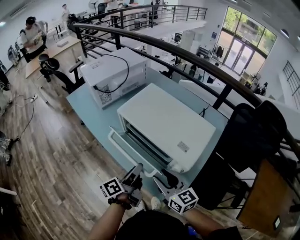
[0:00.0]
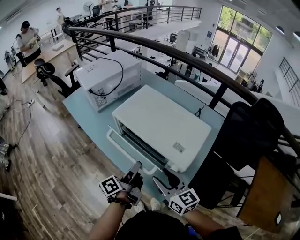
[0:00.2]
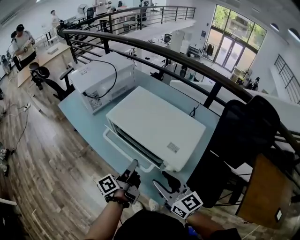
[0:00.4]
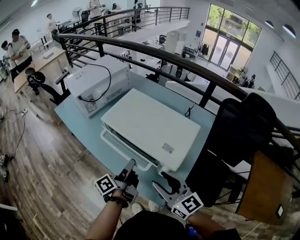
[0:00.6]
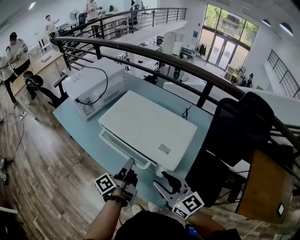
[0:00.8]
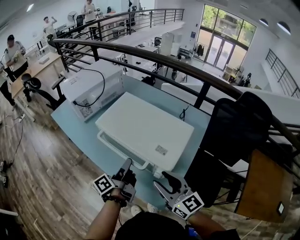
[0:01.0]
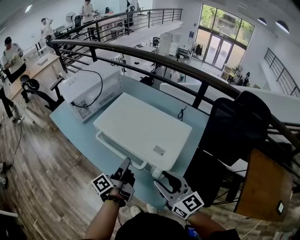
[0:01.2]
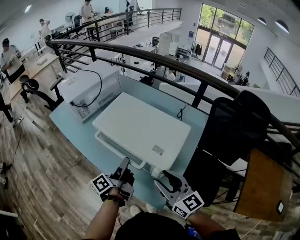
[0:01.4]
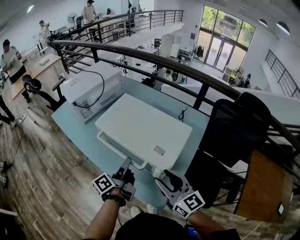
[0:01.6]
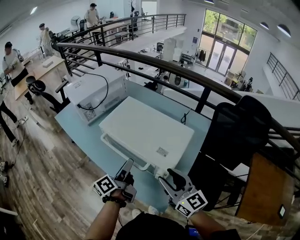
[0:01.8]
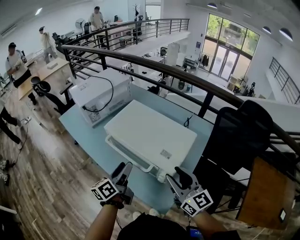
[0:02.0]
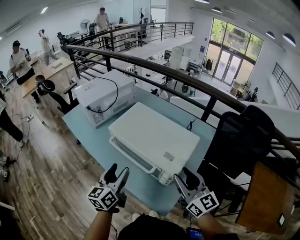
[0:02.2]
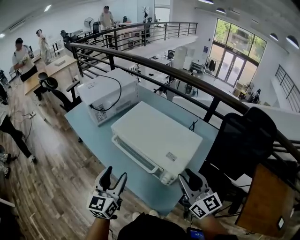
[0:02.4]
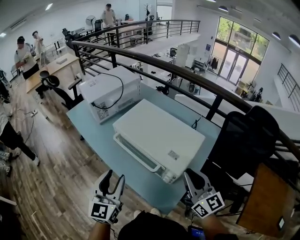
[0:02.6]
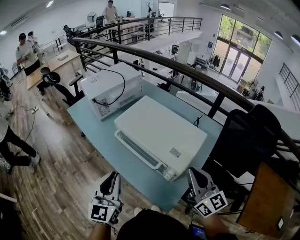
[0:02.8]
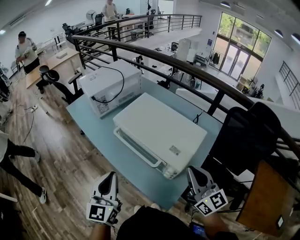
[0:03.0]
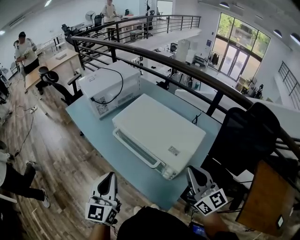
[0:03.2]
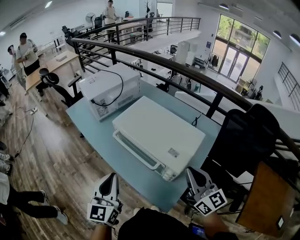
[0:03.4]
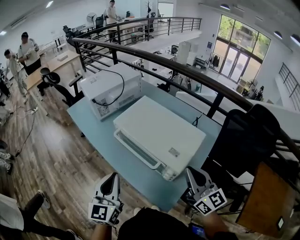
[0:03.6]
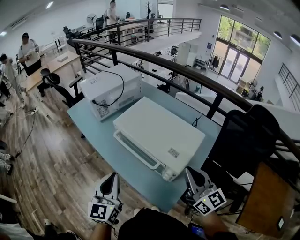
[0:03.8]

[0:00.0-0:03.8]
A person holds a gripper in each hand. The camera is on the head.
0:00.0 to 0:01.2: The left gripper shifts by about 5 cm; the right gripper travels to the right and upward by roughly 10 cm.
0:01.2 to 0:02.6: The left gripper shifts approximately 15 cm to the left, upward and backward, and rotates around the line of its fingers by about 80 degrees, clockwise from behind. Meanwhile the right gripper moves upward and to the right, about 10 cm, and closes its fingers.
0:02.6 to 0:03.8: The left gripper closes.

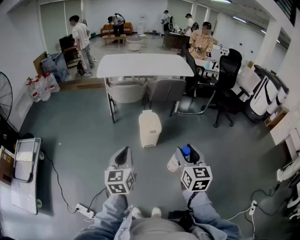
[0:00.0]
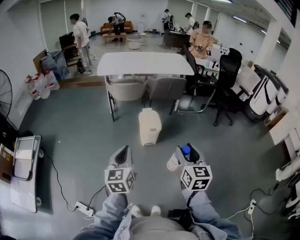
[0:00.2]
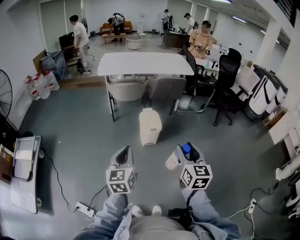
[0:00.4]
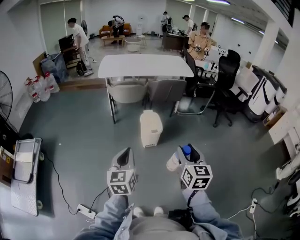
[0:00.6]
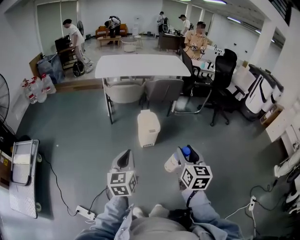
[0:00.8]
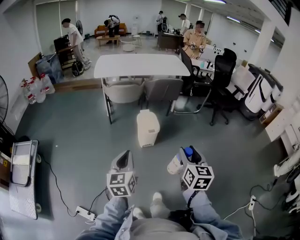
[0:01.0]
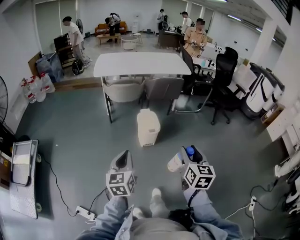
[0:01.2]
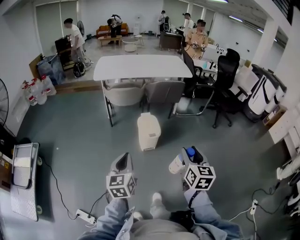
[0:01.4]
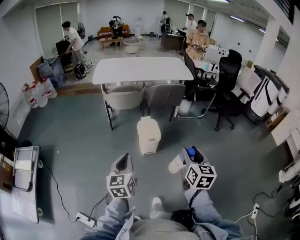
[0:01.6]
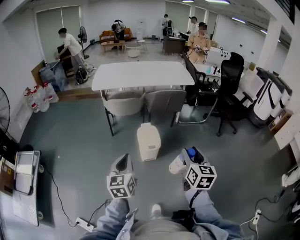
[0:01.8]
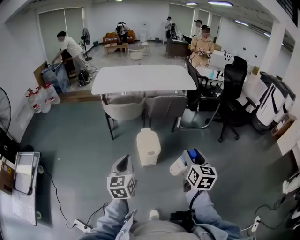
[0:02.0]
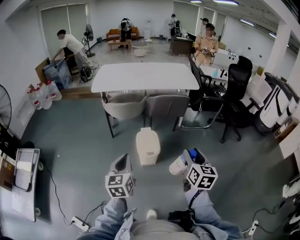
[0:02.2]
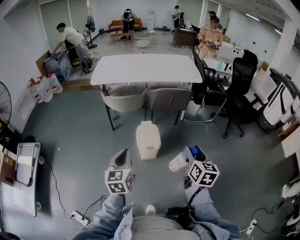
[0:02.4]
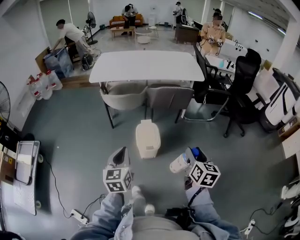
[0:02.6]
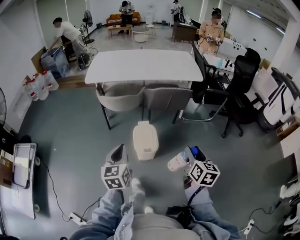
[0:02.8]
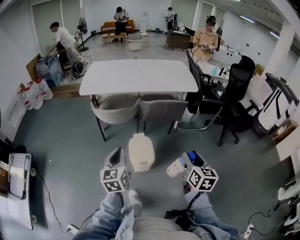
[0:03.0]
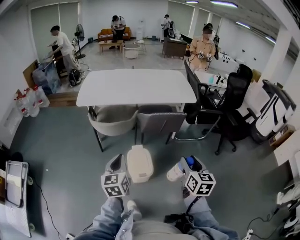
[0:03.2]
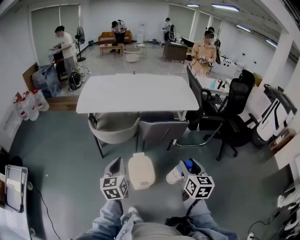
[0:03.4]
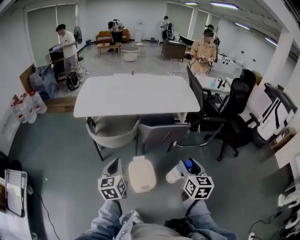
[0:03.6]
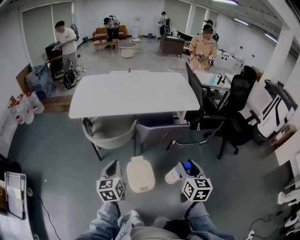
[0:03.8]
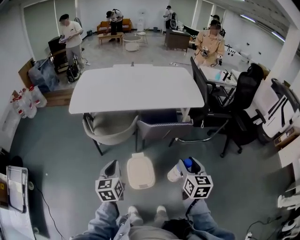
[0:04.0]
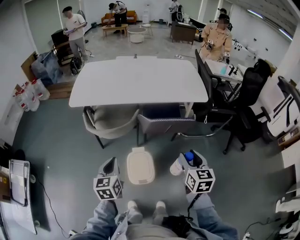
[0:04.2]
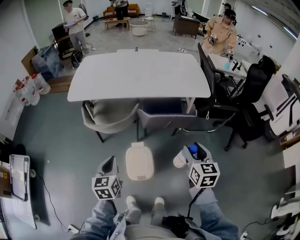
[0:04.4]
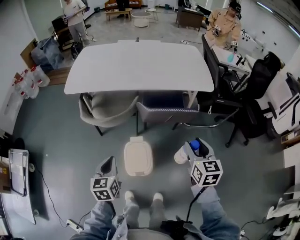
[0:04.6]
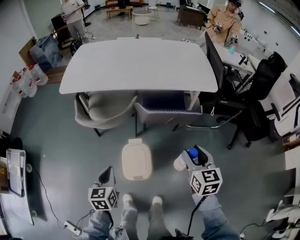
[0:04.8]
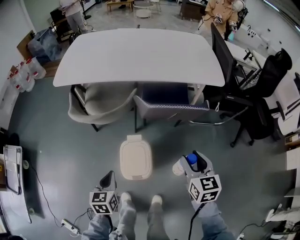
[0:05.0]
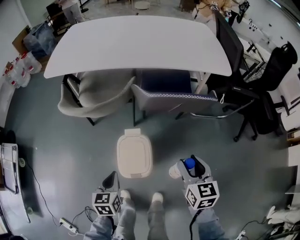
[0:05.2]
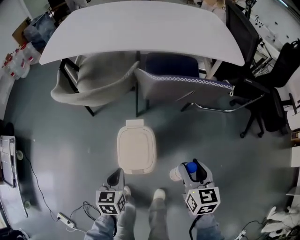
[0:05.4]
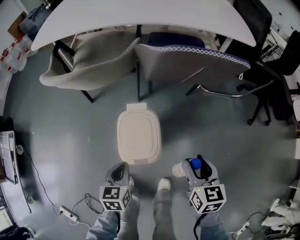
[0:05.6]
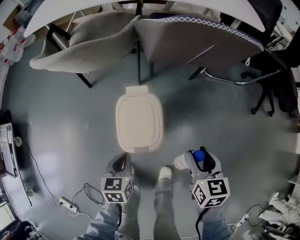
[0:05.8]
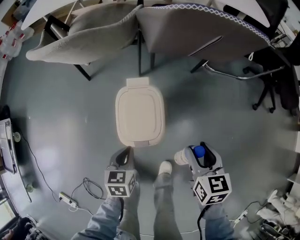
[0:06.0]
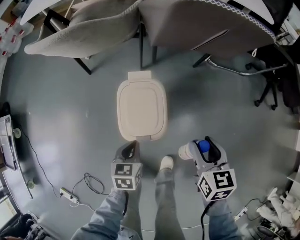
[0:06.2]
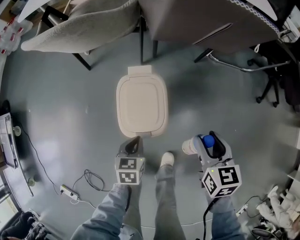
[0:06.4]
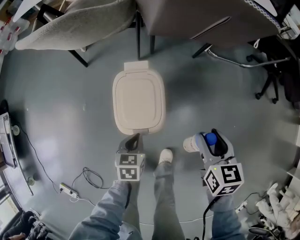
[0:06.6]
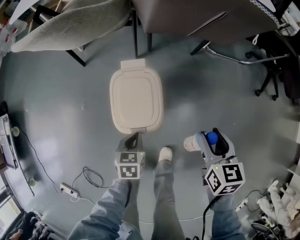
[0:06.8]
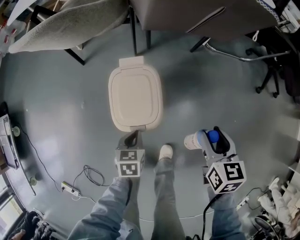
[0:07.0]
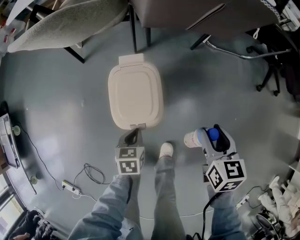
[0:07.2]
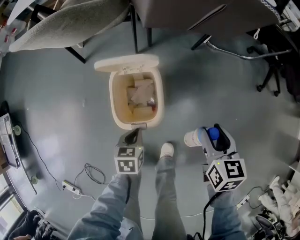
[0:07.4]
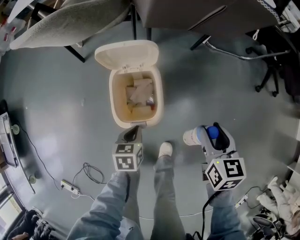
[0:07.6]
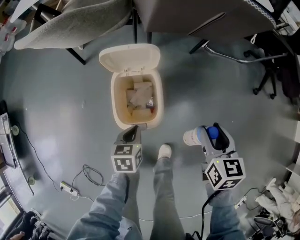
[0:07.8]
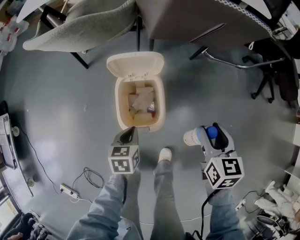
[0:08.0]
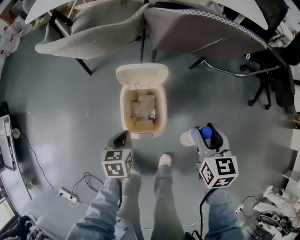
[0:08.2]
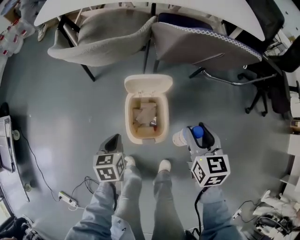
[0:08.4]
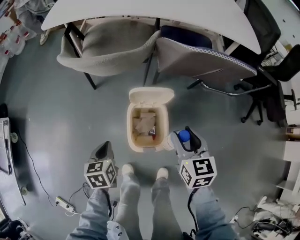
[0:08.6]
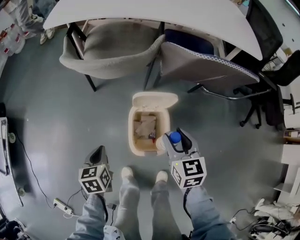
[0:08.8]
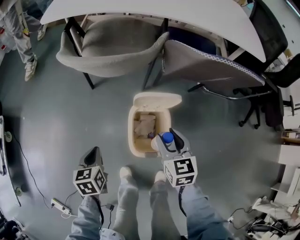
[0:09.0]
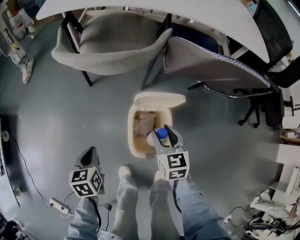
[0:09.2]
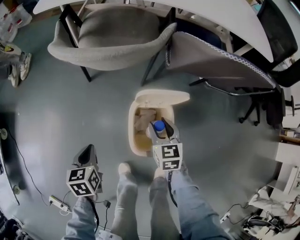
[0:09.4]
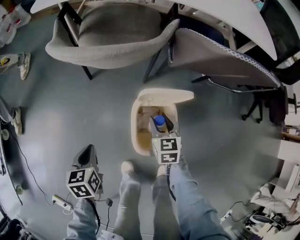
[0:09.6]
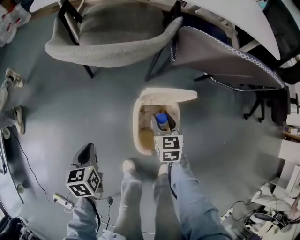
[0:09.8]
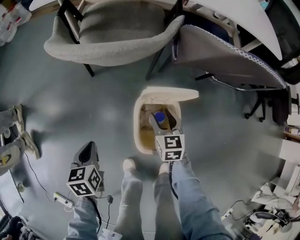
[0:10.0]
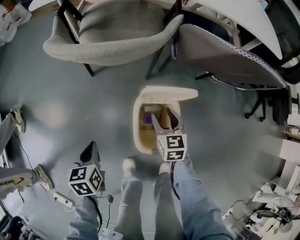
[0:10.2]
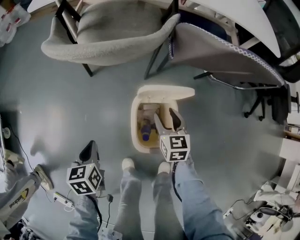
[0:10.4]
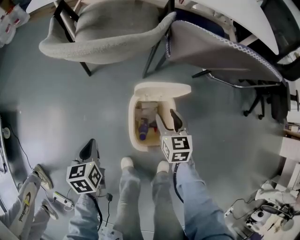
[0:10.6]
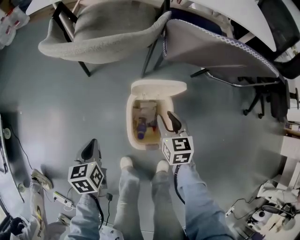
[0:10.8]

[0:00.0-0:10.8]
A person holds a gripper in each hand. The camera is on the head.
0:00.0 to 0:01.6: Both grippers move forward, some 10 cm.
0:01.6 to 0:03.0: Both grippers move forward, approximately 30 cm.
0:03.0 to 0:04.6: The right gripper is displaced forward by some 30 cm. The left gripper shifts approximately 25 cm forward and downward.
0:04.6 to 0:06.2: Both grippers move downward, roughly 40 cm. The left gripper changes its angle by about 20 degrees.
0:06.2 to 0:07.8: There are only small adjustments of the grippers.
0:07.8 to 0:09.2: The right gripper moves to the left and forward, about 25 cm; the left gripper shifts roughly 25 cm to the left.

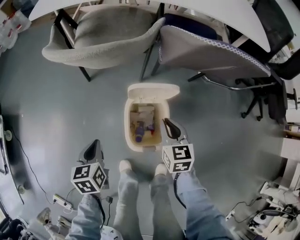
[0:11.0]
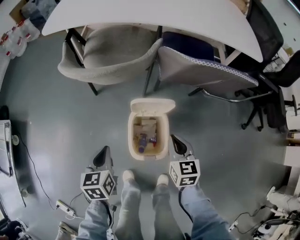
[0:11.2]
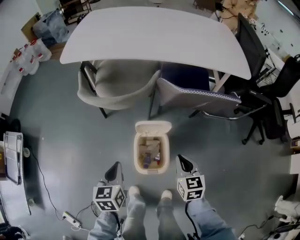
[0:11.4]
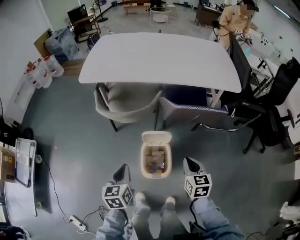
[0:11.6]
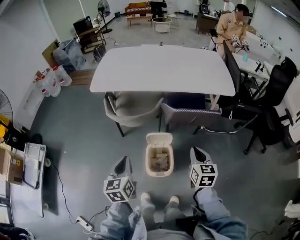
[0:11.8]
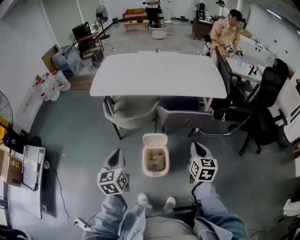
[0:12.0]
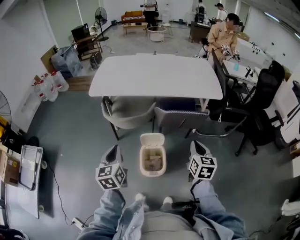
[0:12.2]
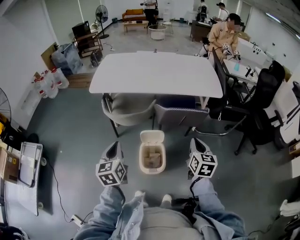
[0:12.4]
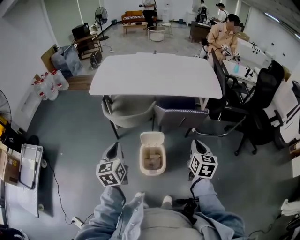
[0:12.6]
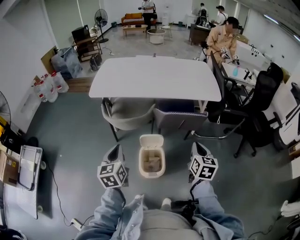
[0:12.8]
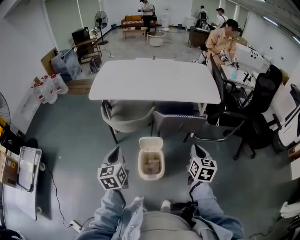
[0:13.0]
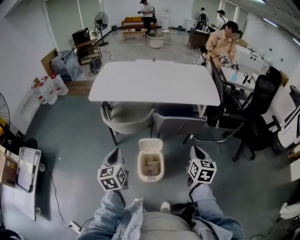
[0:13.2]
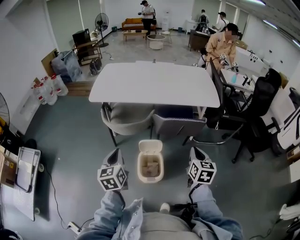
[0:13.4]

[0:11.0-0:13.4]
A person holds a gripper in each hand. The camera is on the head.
0:11.0 to 0:12.2: Both grippers travel together upward, roughly 40 cm. The left gripper turns by some 30 degrees. Meanwhile the right gripper swivels about 20 degrees.
0:12.2 to 0:13.4: The grippers move only a little.

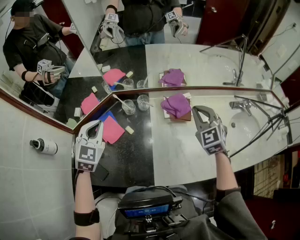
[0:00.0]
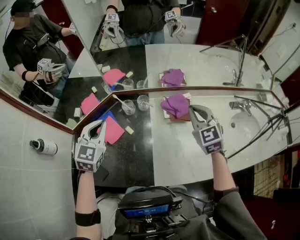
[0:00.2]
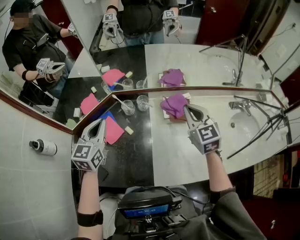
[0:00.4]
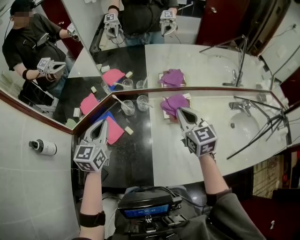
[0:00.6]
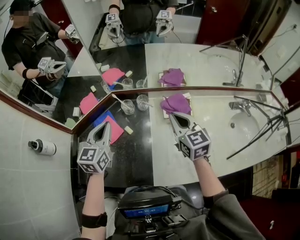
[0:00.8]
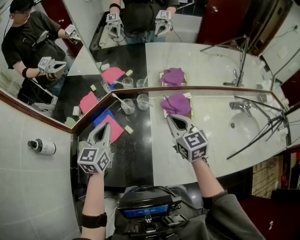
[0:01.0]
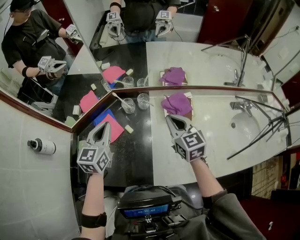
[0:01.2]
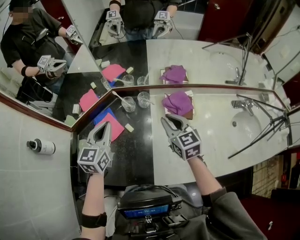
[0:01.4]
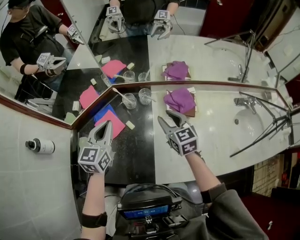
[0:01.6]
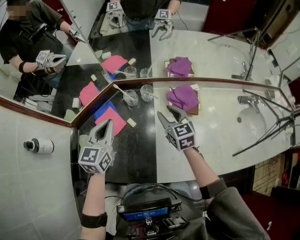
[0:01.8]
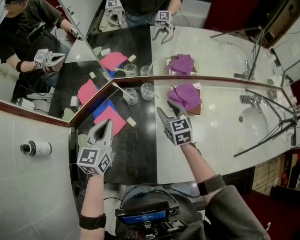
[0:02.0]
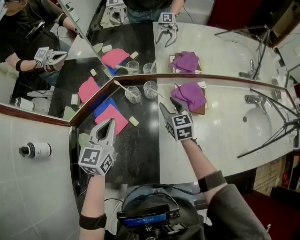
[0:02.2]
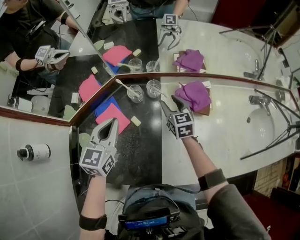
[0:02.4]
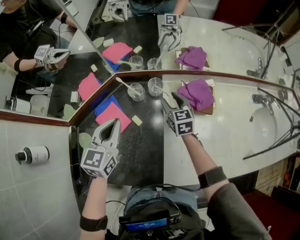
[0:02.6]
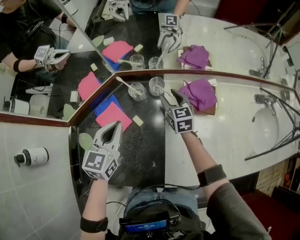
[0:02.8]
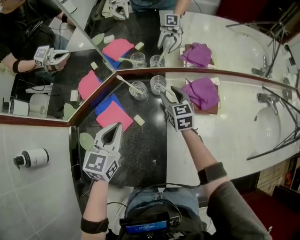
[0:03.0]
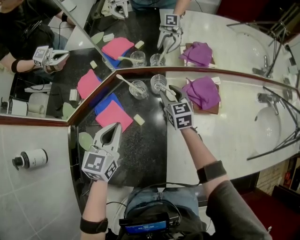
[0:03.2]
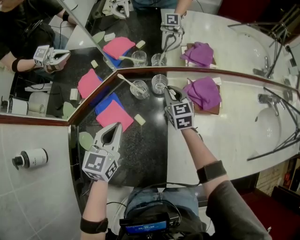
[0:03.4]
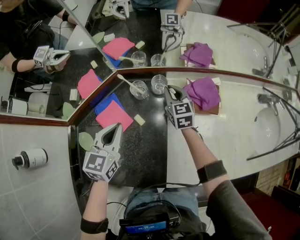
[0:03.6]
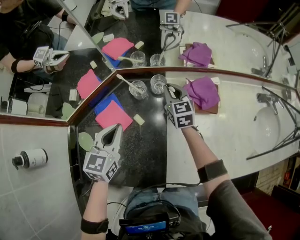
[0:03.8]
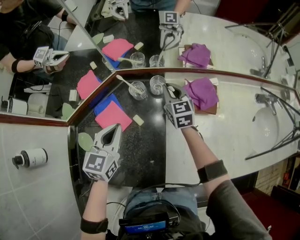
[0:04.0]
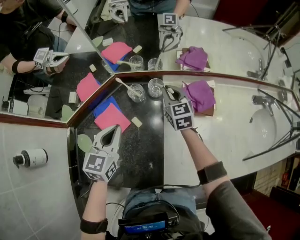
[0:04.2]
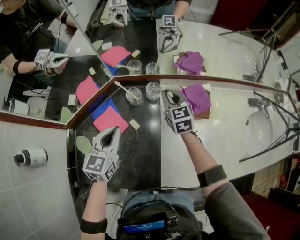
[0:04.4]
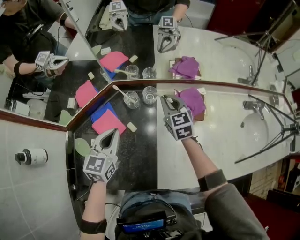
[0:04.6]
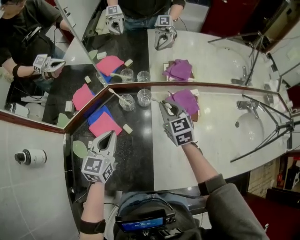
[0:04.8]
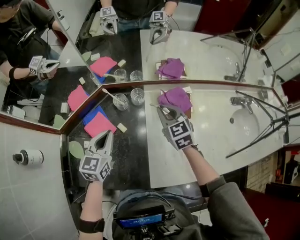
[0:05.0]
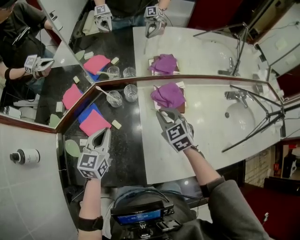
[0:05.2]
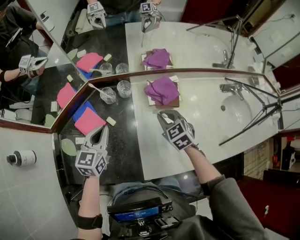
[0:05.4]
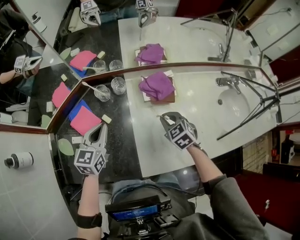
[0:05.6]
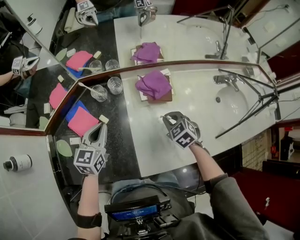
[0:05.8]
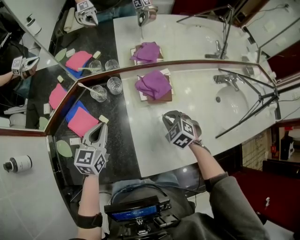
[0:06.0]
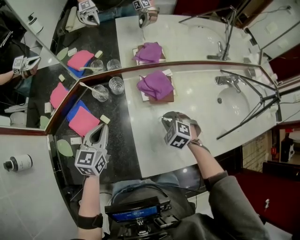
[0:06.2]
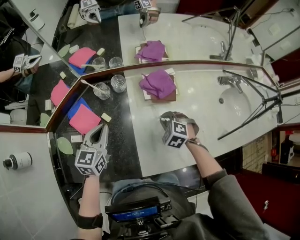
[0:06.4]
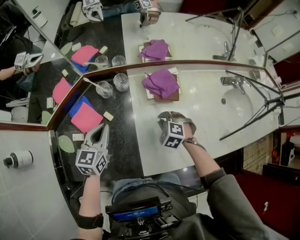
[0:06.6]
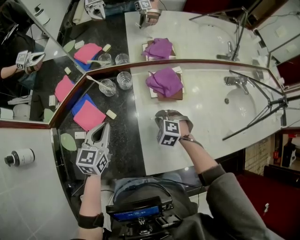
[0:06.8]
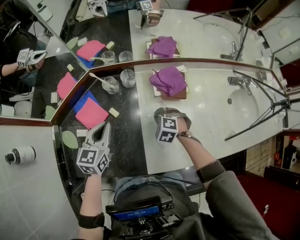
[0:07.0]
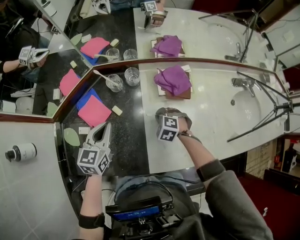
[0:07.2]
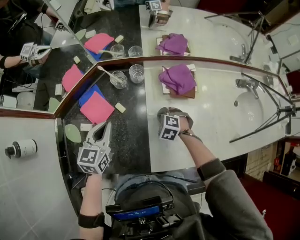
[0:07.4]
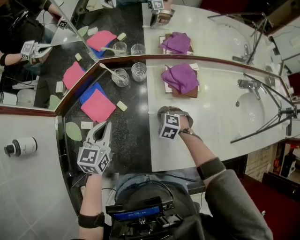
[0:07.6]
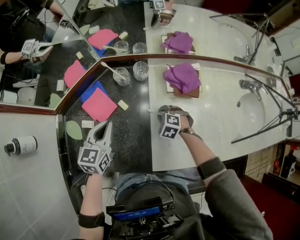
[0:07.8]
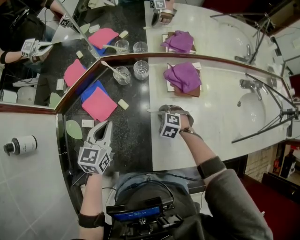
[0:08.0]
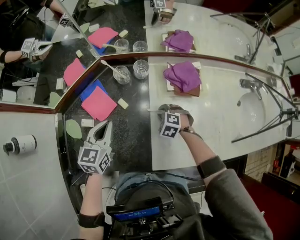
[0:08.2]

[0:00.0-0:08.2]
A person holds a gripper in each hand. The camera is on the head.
0:00.0 to 0:01.6: The left gripper swivels about 30 degrees. Meanwhile the right gripper moves to the left and downward, some 15 cm, turns by about 30 degrees, and opens up.
0:01.6 to 0:03.2: The left gripper goes some 10 cm downward, while the right gripper shifts some 20 cm downward and forward.
0:03.2 to 0:05.0: The right gripper travels upward, backward and to the right by some 15 cm, and closes up.
0:05.0 to 0:06.6: The right gripper heads downward, backward and to the right, covering some 20 cm, and points its fingers some 30 degrees further downward. The left gripper ends up approximately 5 cm from where it was.
0:06.6 to 0:08.2: The right gripper moves downward and to the left, some 10 cm. The left gripper travels to the left by roughly 5 cm.
